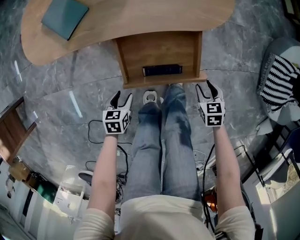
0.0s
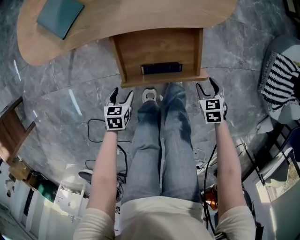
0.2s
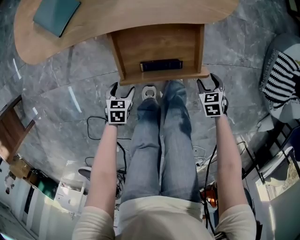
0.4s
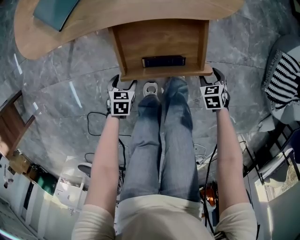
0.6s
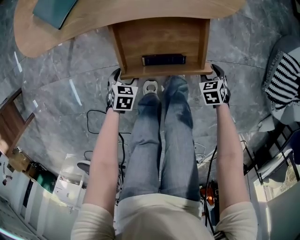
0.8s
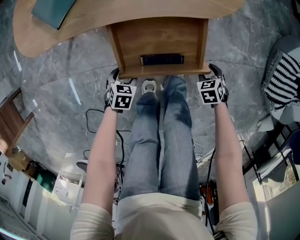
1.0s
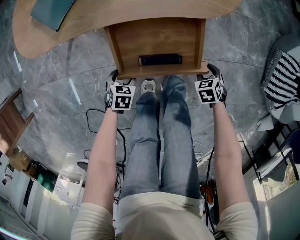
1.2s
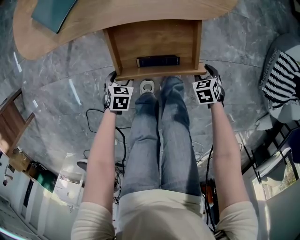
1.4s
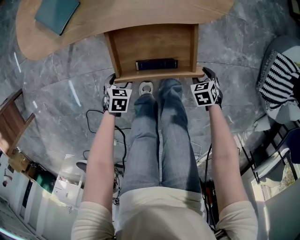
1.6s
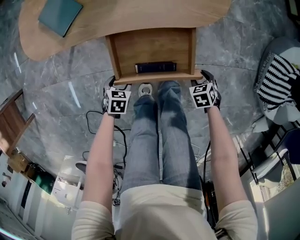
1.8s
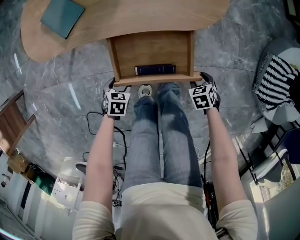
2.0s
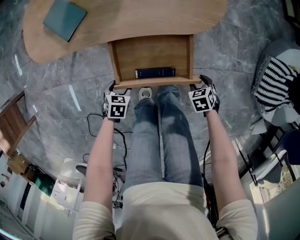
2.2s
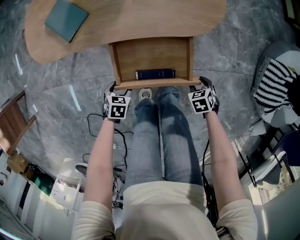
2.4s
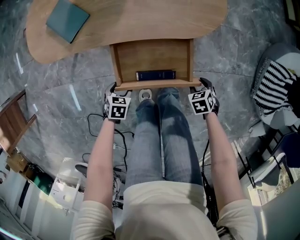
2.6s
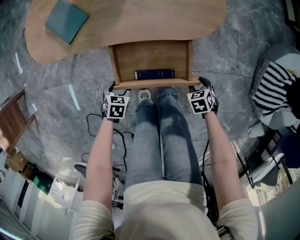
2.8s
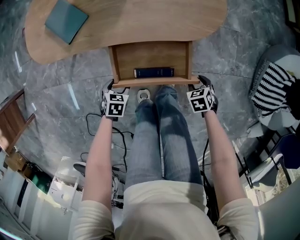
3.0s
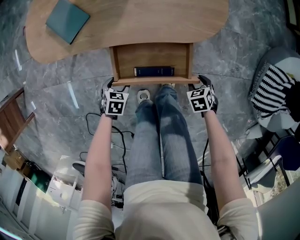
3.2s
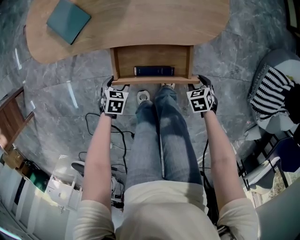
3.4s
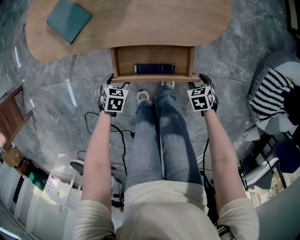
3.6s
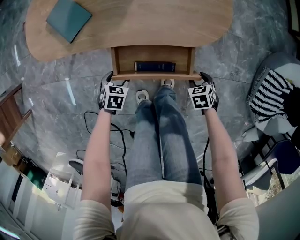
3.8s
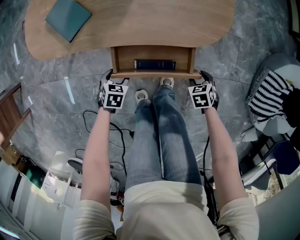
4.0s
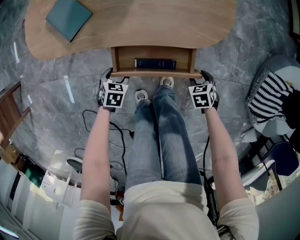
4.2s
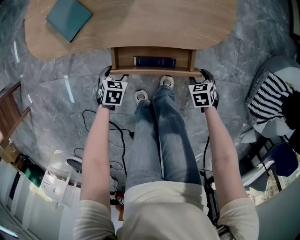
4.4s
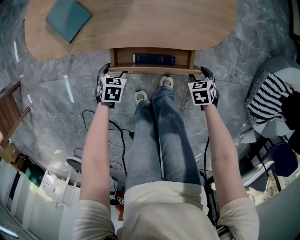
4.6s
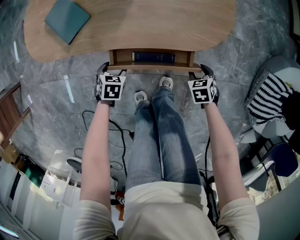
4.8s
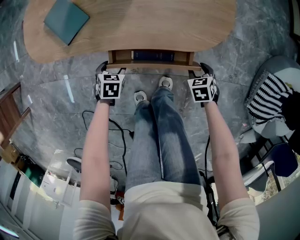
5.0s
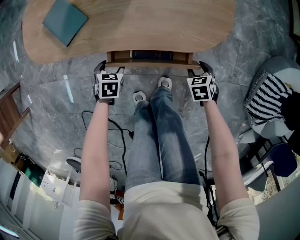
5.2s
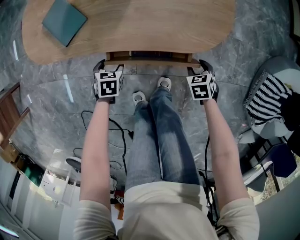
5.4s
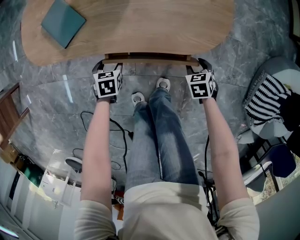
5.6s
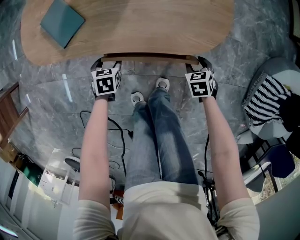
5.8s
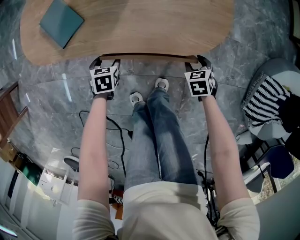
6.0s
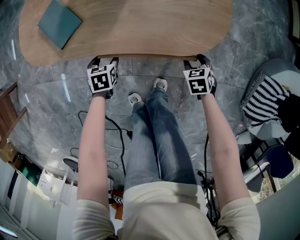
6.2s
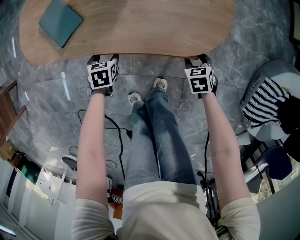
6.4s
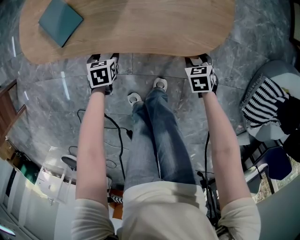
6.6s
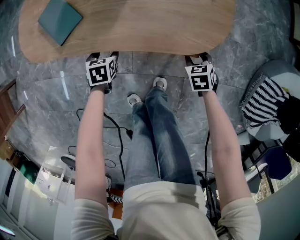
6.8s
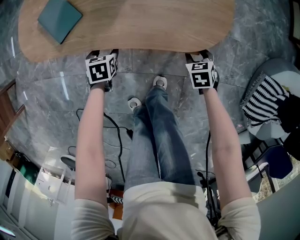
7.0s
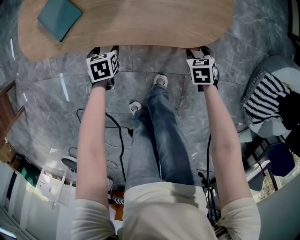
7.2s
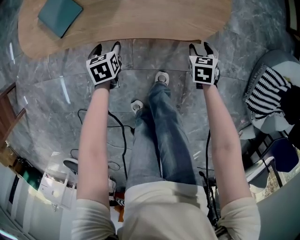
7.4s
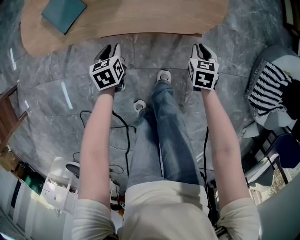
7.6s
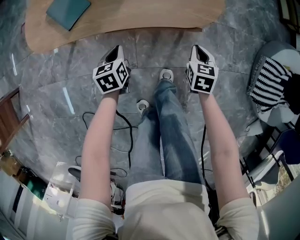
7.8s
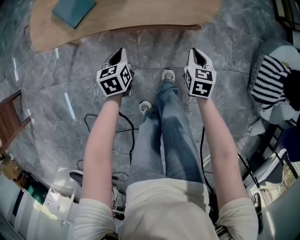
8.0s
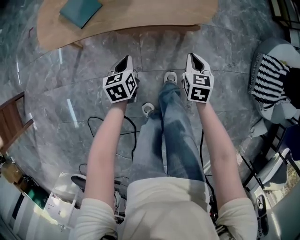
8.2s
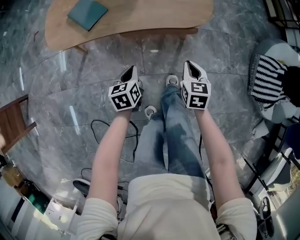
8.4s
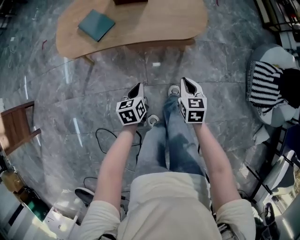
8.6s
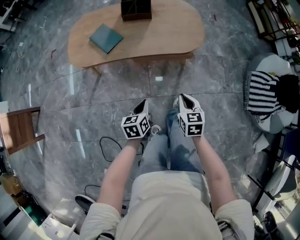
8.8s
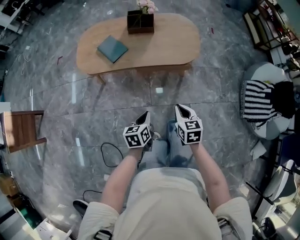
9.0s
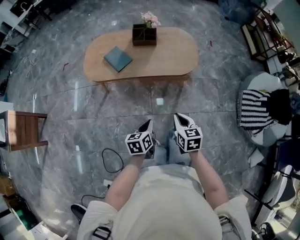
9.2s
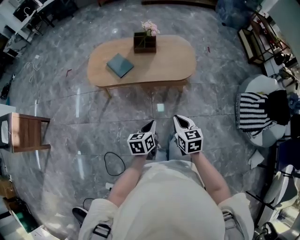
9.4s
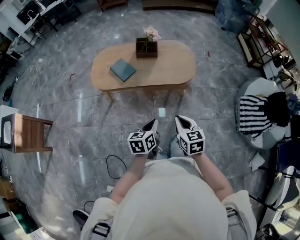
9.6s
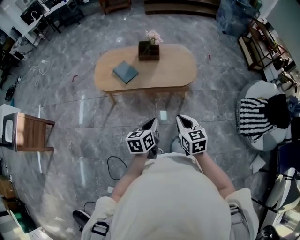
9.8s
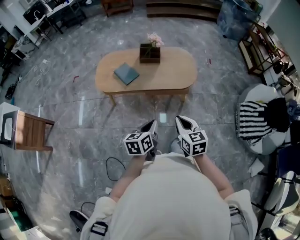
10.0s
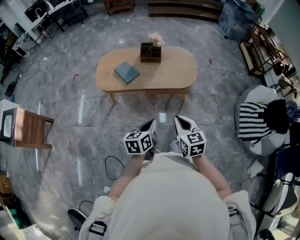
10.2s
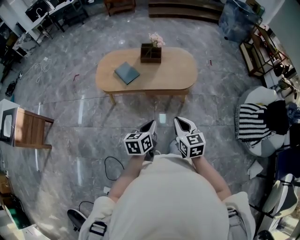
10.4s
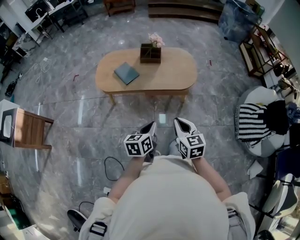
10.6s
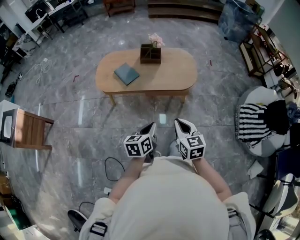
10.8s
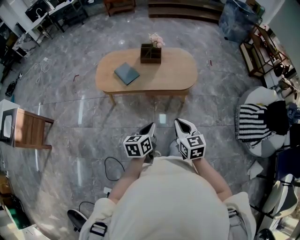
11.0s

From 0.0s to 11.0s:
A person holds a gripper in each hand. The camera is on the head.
From 0.0s to 1.6s: The left gripper changes place by some 5 cm. Meanwhile the right gripper travels downward by approximately 5 cm.
From 1.6s to 3.2s: The left gripper moves some 5 cm, while the right gripper ends up about 5 cm from where it was.
From 3.2s to 4.8s: The right gripper changes place by about 10 cm. Meanwhile the left gripper changes place by some 10 cm.
From 4.8s to 6.2s: The left gripper ends up some 5 cm from where it was, while the right gripper changes place by about 5 cm.
From 6.2s to 7.8s: The right gripper travels upward and backward by some 10 cm, rotates approximately 30 degrees, and closes. Meanwhile the left gripper heads upward, covering some 10 cm, swivels some 20 degrees, and closes.
From 7.8s to 9.4s: Both grippers move upward and backward, roughly 40 cm. The right gripper swivels approximately 20 degrees.
From 9.4s to 11.0s: Both grippers move upward, about 5 cm.

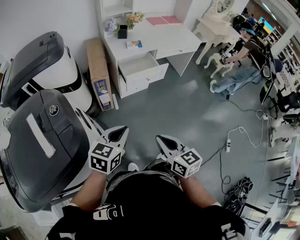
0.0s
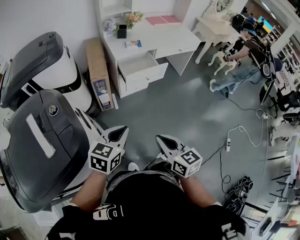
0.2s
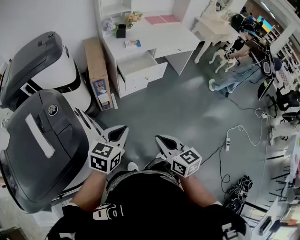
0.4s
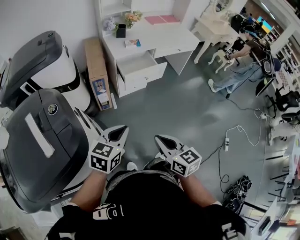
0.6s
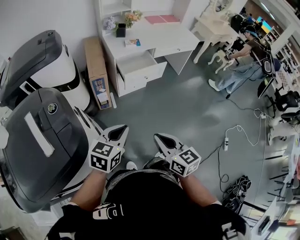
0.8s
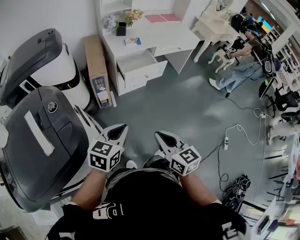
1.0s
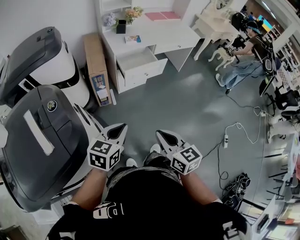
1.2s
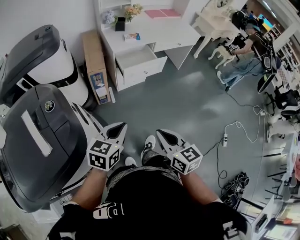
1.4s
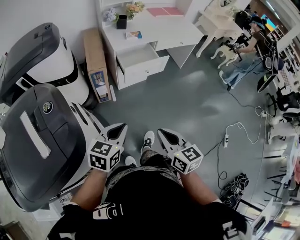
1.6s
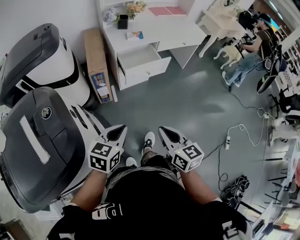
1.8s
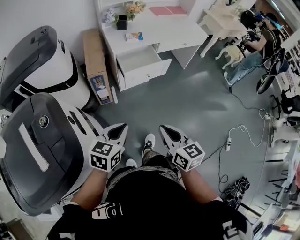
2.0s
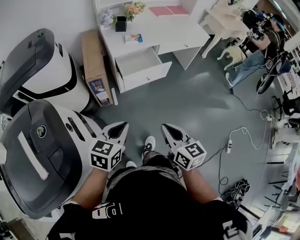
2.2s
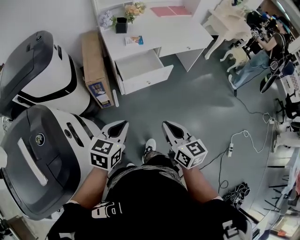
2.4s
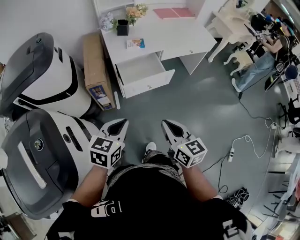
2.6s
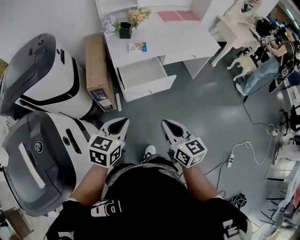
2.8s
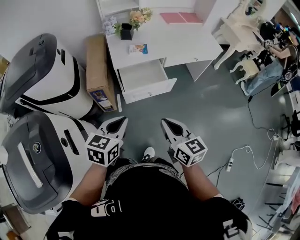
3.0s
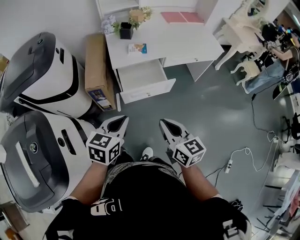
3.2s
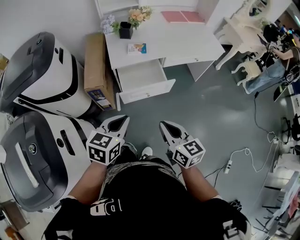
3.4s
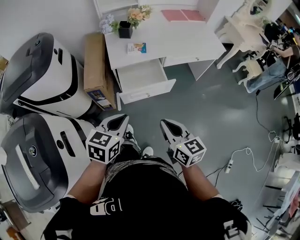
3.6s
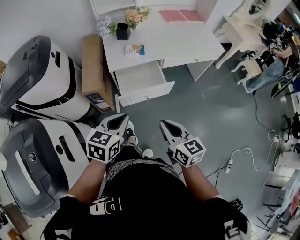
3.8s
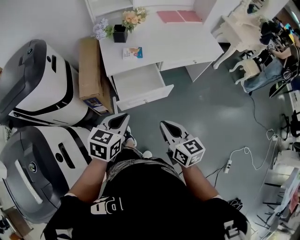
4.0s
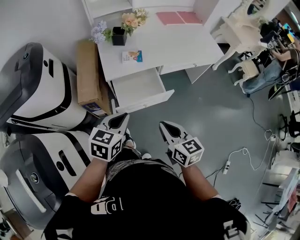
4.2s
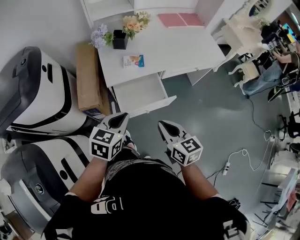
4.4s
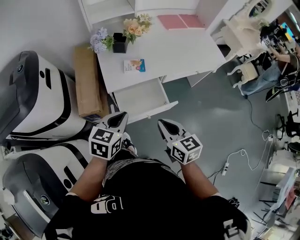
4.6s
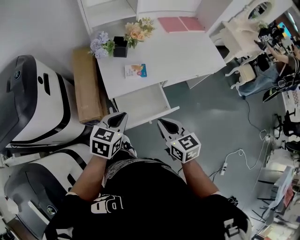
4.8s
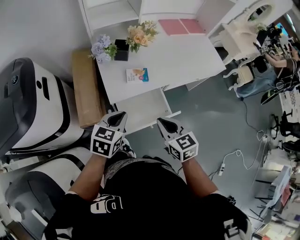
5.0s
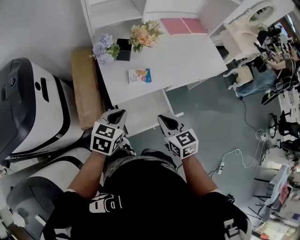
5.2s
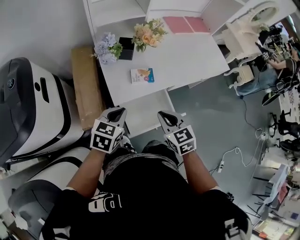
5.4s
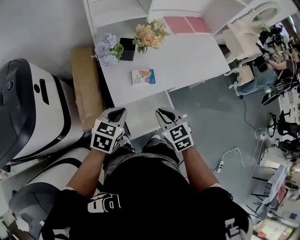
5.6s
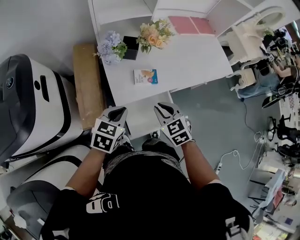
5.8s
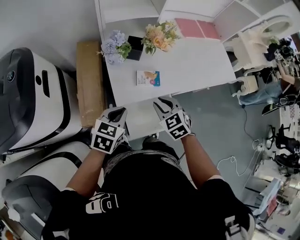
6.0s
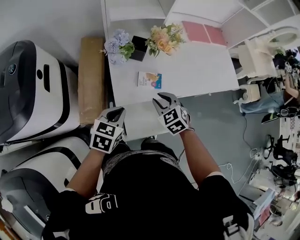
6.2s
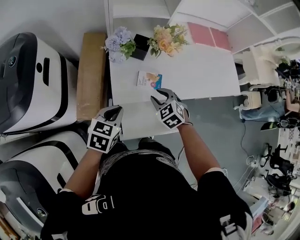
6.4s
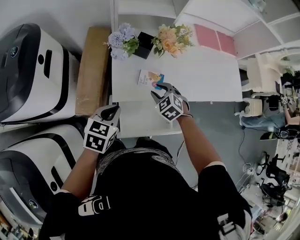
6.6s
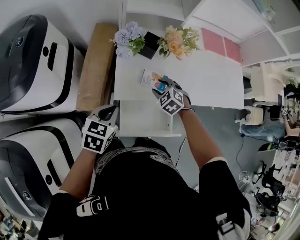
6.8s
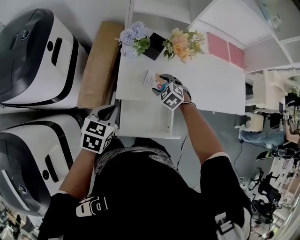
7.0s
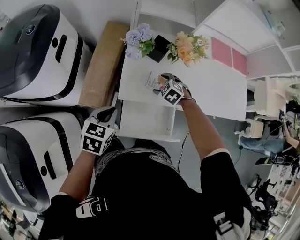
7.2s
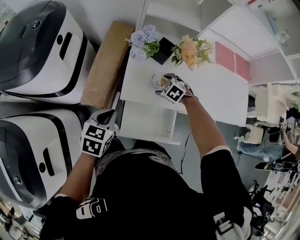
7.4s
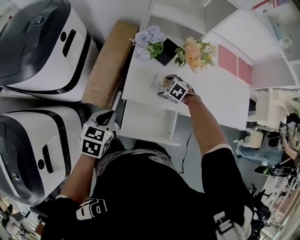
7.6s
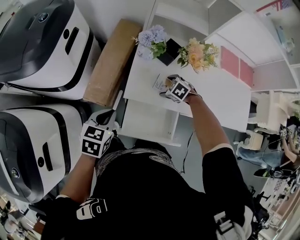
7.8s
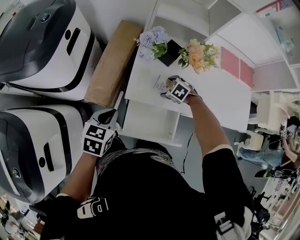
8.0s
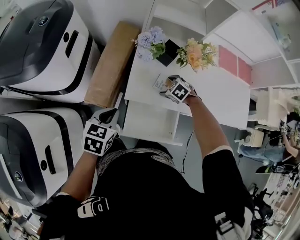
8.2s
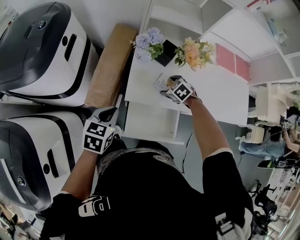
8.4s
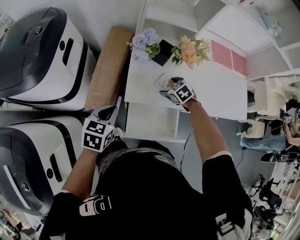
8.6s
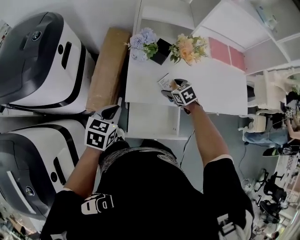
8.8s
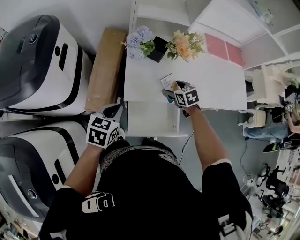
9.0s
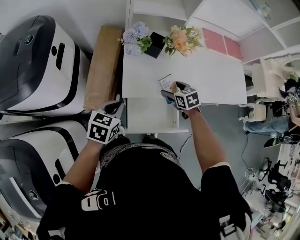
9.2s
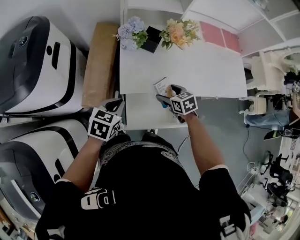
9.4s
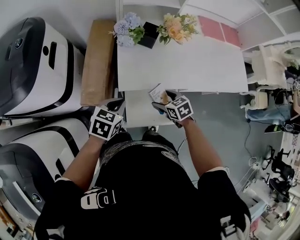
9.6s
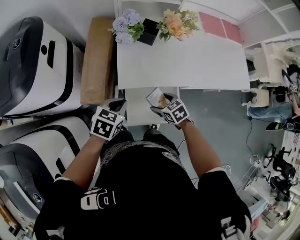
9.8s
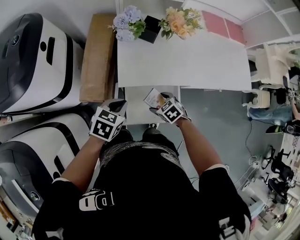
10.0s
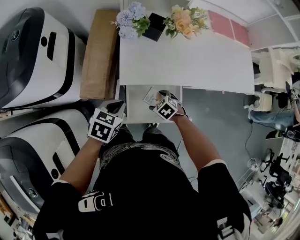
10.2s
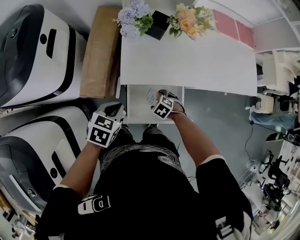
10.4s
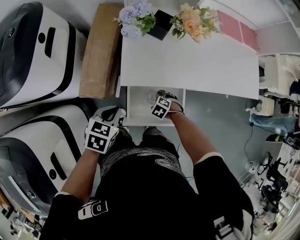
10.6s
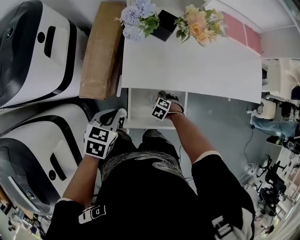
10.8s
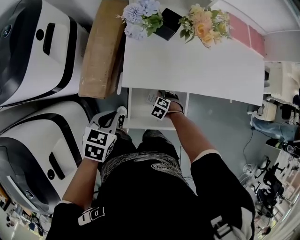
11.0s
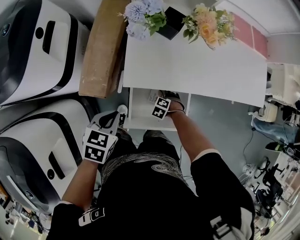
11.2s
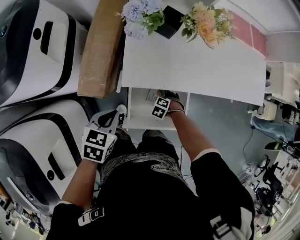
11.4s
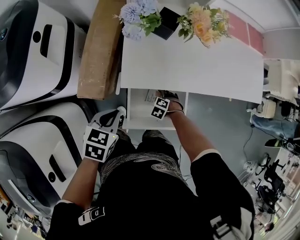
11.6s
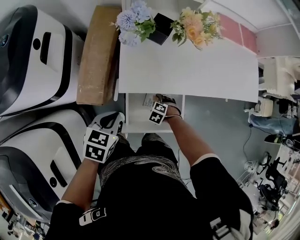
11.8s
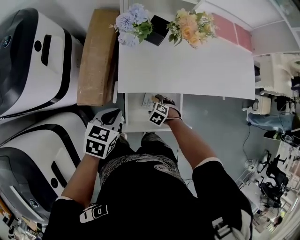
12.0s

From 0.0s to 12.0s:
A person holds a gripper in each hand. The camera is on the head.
From 0.0s to 1.6s: The grippers stay close to where they were, moving slightly.
From 1.6s to 3.0s: The two grippers go roughly 25 cm forward.
From 3.0s to 4.4s: The grippers both shift forward by approximately 15 cm.
From 4.4s to 6.0s: Both grippers travel together forward and to the left, about 25 cm. The right gripper changes its angle by roughly 40 degrees.
From 6.0s to 7.6s: The right gripper travels downward by some 15 cm, changes its angle by approximately 50 degrees, and opens, while the left gripper moves roughly 5 cm, and turns by roughly 30 degrees.
From 7.6s to 9.0s: The right gripper goes some 5 cm upward, and turns by approximately 50 degrees.
From 9.0s to 10.4s: The left gripper moves downward, roughly 5 cm; the right gripper heads downward, covering some 15 cm, and rotates roughly 40 degrees.
From 10.4s to 12.0s: The right gripper reaches some 10 cm downward, then returns.

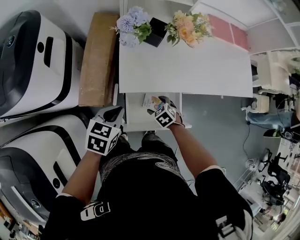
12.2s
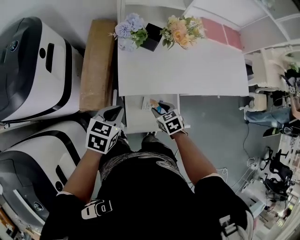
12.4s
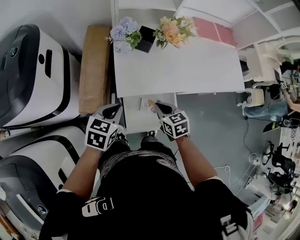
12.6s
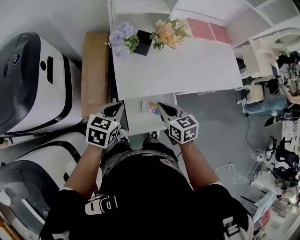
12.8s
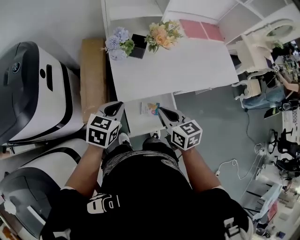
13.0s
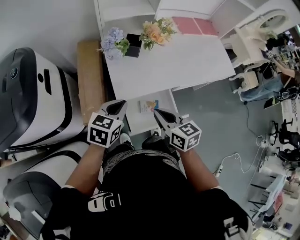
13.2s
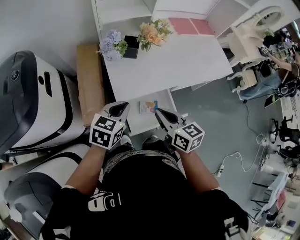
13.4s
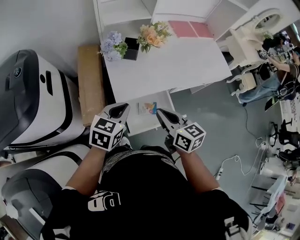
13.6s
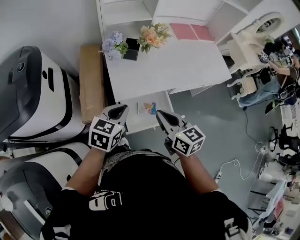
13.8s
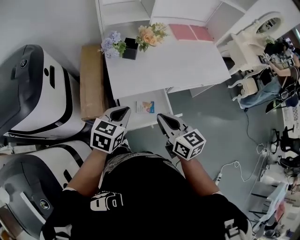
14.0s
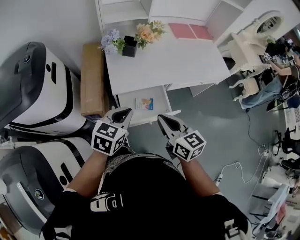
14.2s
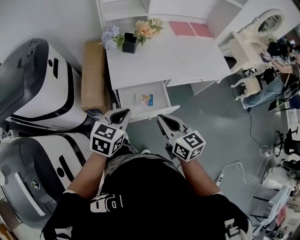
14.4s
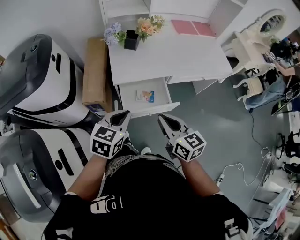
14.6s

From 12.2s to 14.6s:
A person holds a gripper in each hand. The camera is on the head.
From 12.2s to 13.4s: The left gripper travels upward by about 10 cm, and changes its angle by some 20 degrees; the right gripper is displaced upward by approximately 30 cm, points its fingers some 50 degrees further upward, and closes.
From 13.4s to 14.6s: Both grippers move backward and to the right, roughly 20 cm.
